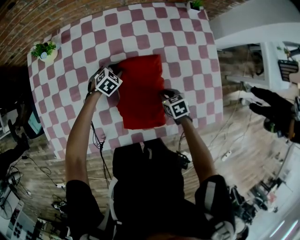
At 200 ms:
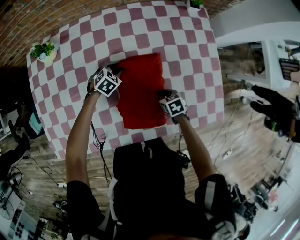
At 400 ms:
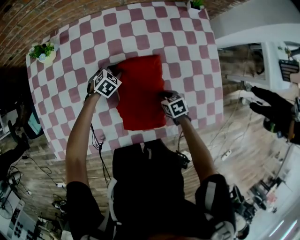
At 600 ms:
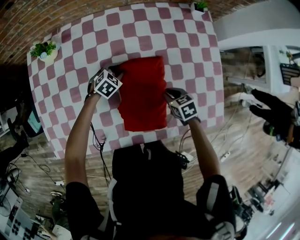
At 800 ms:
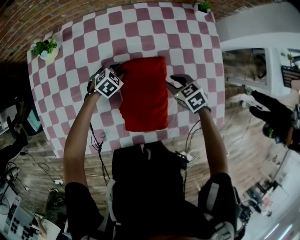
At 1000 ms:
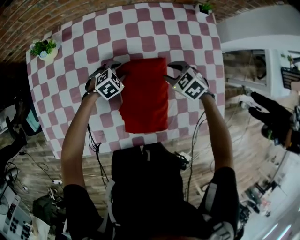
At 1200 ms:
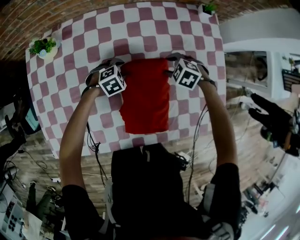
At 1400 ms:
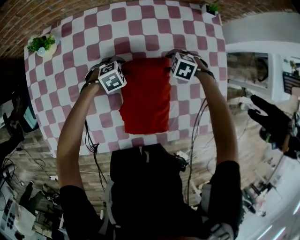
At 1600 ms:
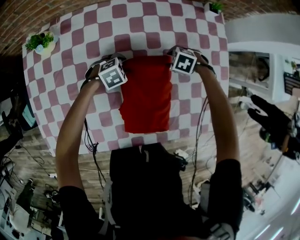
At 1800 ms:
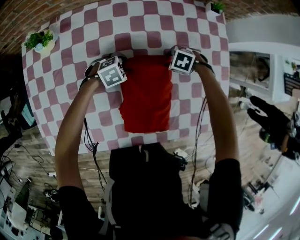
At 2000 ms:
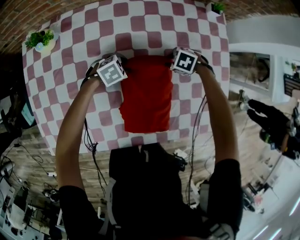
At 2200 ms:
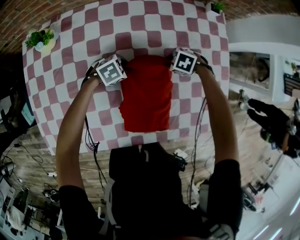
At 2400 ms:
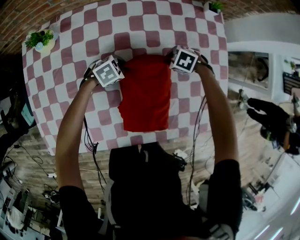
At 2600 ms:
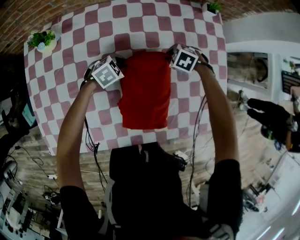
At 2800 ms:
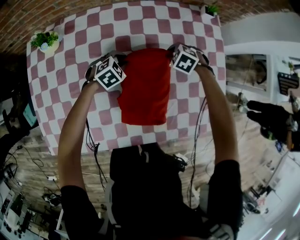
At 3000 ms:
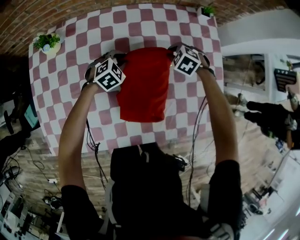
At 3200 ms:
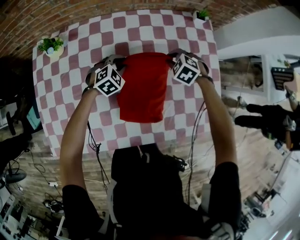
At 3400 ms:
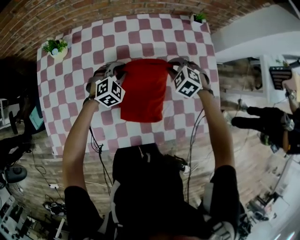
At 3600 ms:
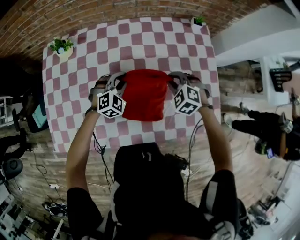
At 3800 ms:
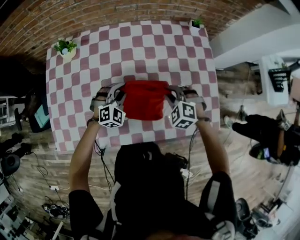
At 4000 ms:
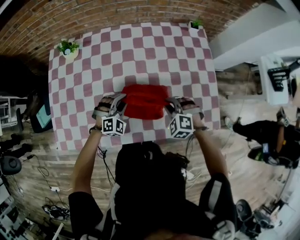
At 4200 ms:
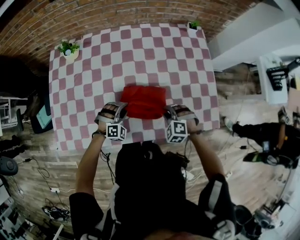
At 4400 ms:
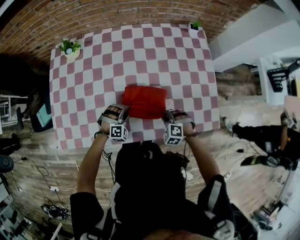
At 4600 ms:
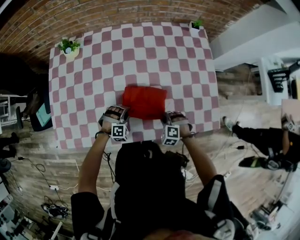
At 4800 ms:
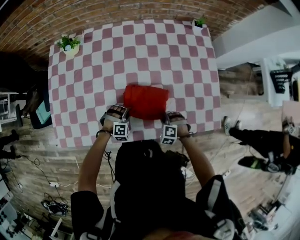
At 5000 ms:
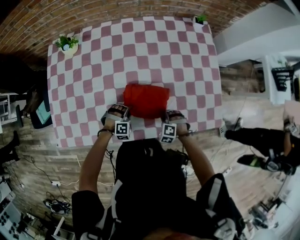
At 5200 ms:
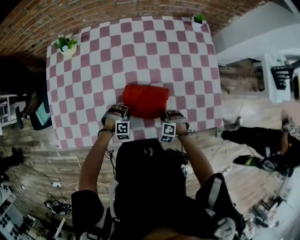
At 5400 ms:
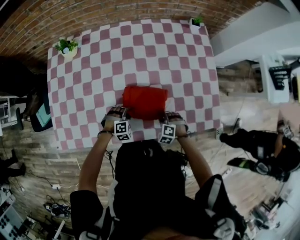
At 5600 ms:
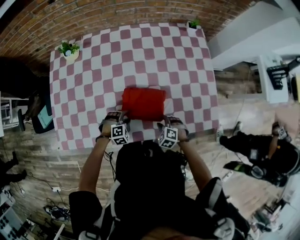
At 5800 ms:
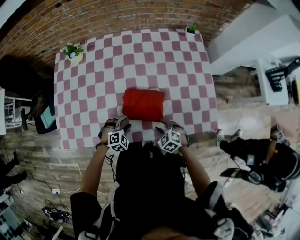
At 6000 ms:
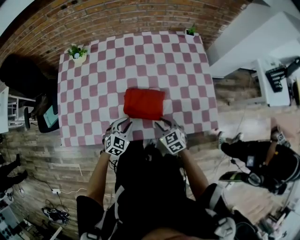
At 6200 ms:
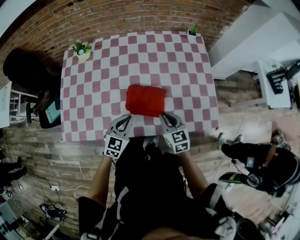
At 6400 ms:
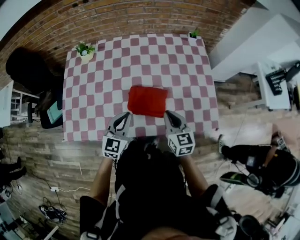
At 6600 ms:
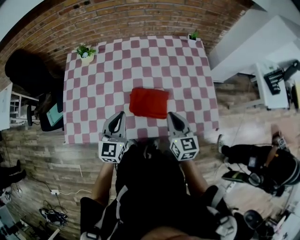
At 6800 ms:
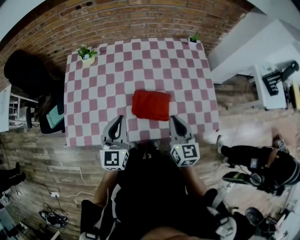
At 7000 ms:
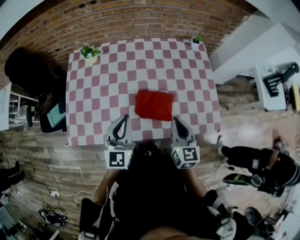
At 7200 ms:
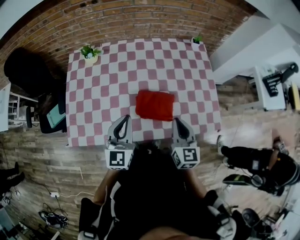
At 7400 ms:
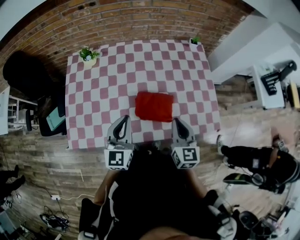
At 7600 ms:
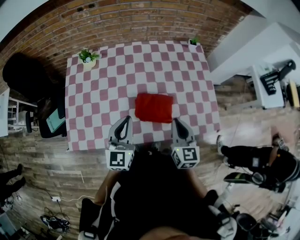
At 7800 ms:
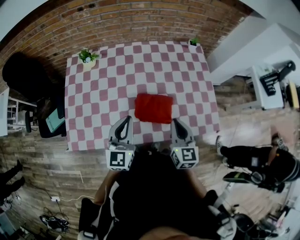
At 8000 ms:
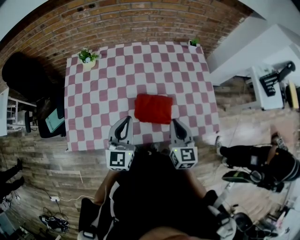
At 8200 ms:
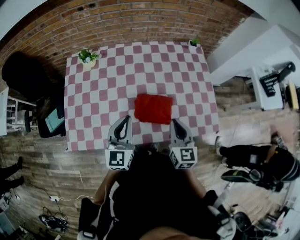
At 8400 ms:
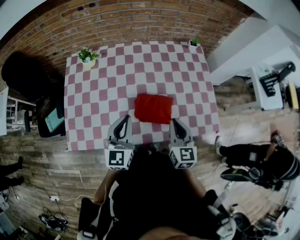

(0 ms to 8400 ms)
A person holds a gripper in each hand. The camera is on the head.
0 ms - 1400 ms: The right gripper goes upward and returns, approximately 5 cm each way, twists some 50 degrees counterclockwise, seen from behind, and opens.
1400 ms - 2800 ms: The right gripper closes its fingers. Meanwhile the left gripper closes its fingers.
2800 ms - 4200 ms: The left gripper shifts by roughly 25 cm, and turns by about 40 degrees. The right gripper changes place by about 30 cm, and rotates some 20 degrees.
4200 ms - 5600 ms: The grippers both shift downward and backward by about 10 cm. The left gripper swivels some 20 degrees, and opens. Meanwhile the right gripper opens its fingers.
5600 ms - 7000 ms: The two grippers go about 35 cm upward. The right gripper tips its fingers upward by about 50 degrees, and closes up; the left gripper tips its fingers upward by some 60 degrees, and closes.
7000 ms - 8400 ms: There are only small adjustments of the grippers.

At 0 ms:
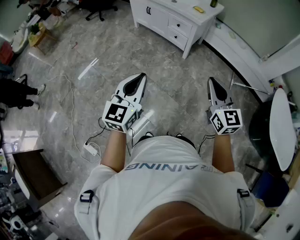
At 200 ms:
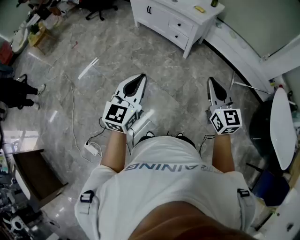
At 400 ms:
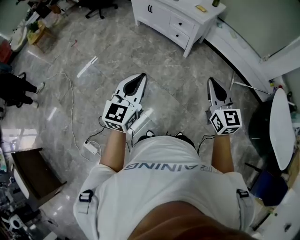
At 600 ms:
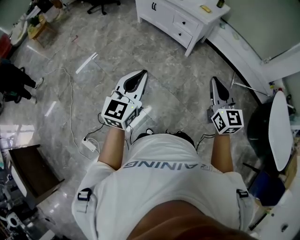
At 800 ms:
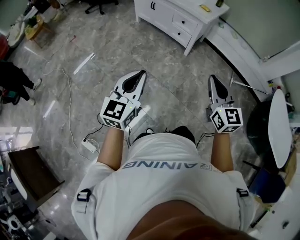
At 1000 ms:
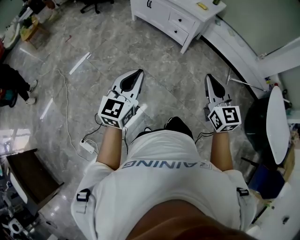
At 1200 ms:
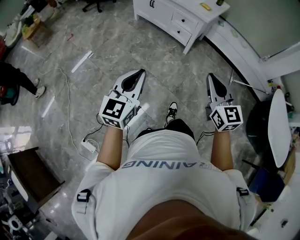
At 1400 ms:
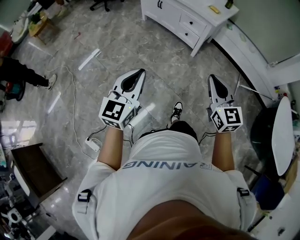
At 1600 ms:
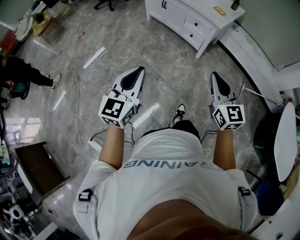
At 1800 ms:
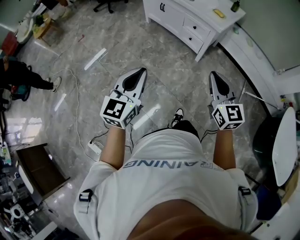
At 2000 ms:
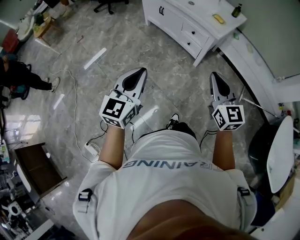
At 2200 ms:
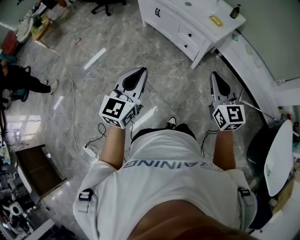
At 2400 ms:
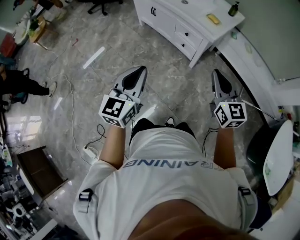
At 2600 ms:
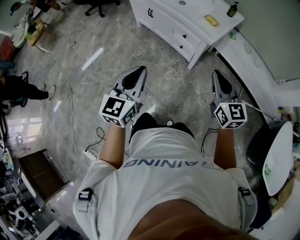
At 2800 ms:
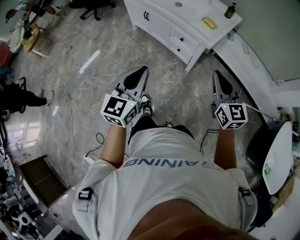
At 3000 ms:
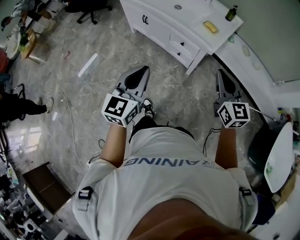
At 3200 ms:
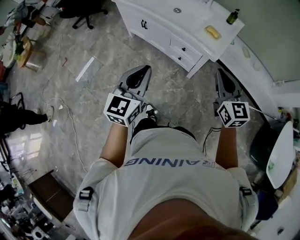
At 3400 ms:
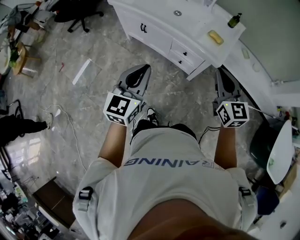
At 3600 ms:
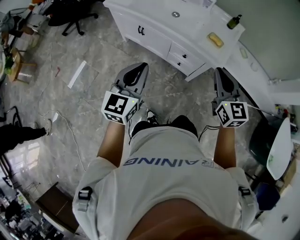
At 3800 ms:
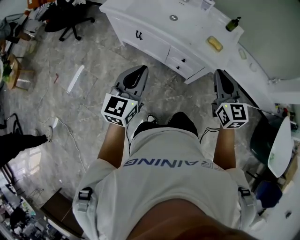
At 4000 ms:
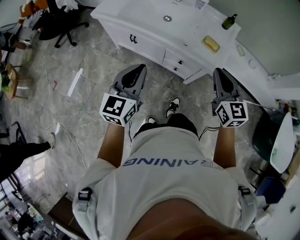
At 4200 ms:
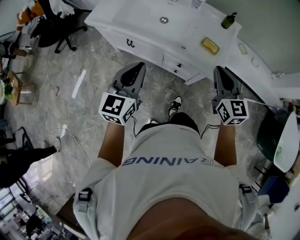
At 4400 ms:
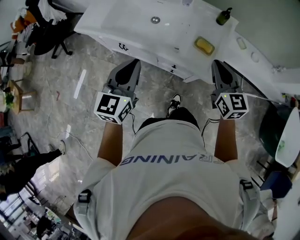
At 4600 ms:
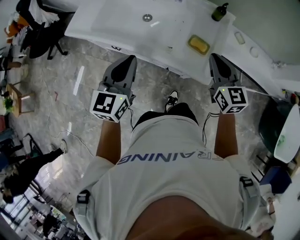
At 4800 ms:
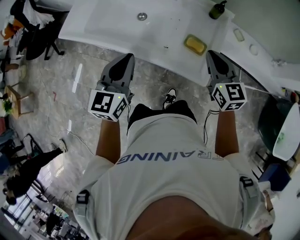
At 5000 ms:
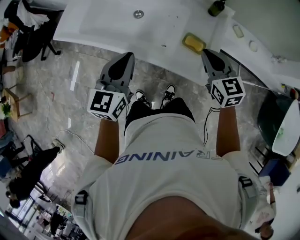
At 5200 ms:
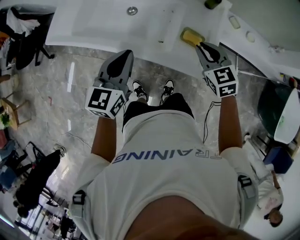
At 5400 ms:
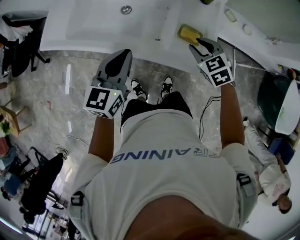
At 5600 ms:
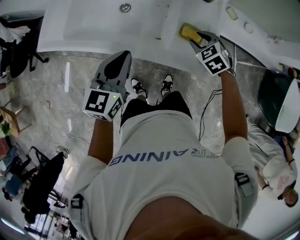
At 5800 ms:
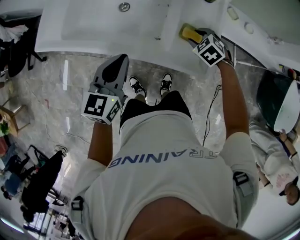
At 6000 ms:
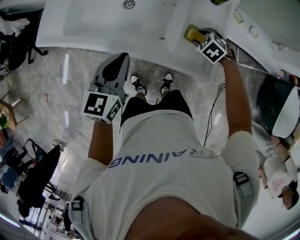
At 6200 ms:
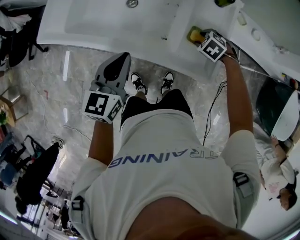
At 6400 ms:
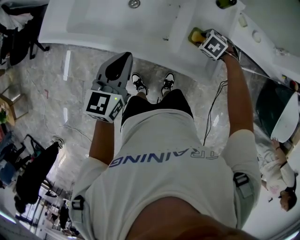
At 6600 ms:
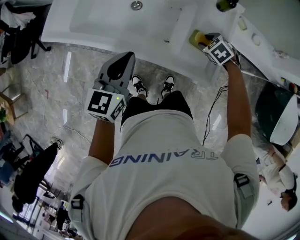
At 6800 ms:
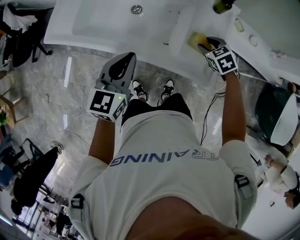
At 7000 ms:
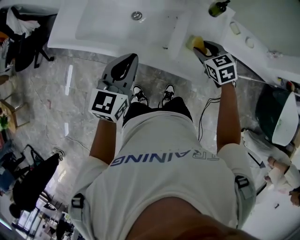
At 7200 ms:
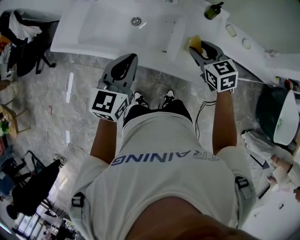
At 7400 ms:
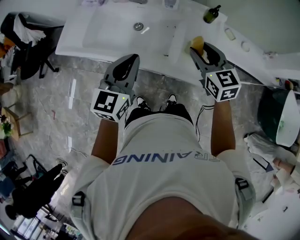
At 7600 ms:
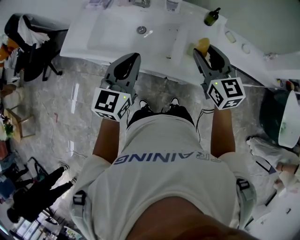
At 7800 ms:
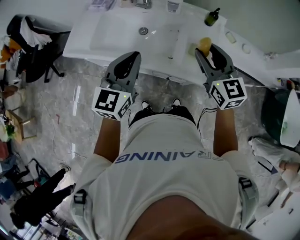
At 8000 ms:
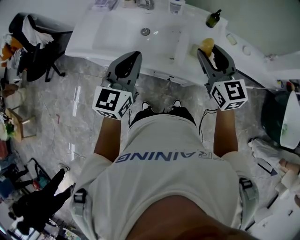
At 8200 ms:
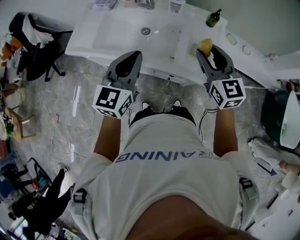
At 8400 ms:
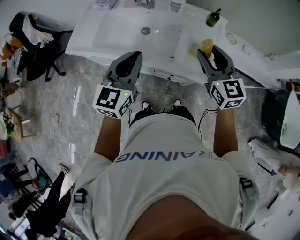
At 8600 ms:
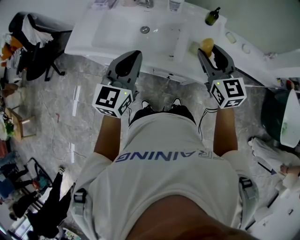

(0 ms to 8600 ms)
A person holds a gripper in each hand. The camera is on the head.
0 ms - 1400 ms: The right gripper heads to the left and forward, covering roughly 10 cm. Meanwhile the left gripper travels to the left by some 10 cm.
1400 ms - 2800 ms: The grippers both shift forward and to the right by roughly 35 cm.
2800 ms - 4400 ms: The grippers both shift forward by some 40 cm.
4400 ms - 5800 ms: The left gripper heads forward and downward, covering some 15 cm; the right gripper moves downward and forward, roughly 30 cm, tips its fingers downward by roughly 50 degrees, and opens its fingers.
5800 ms - 7200 ms: The right gripper heads upward, covering some 15 cm, and points its fingers about 30 degrees further upward. Meanwhile the left gripper moves upward, some 5 cm.
7200 ms - 8600 ms: The right gripper shifts some 15 cm upward and backward, and swivels about 20 degrees. The left gripper goes about 5 cm upward.

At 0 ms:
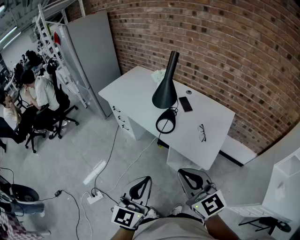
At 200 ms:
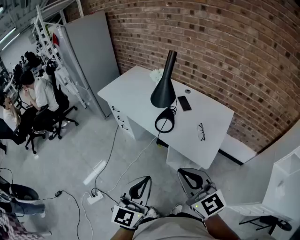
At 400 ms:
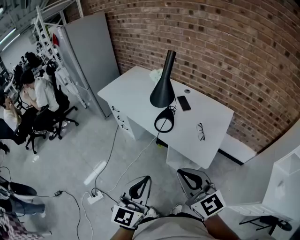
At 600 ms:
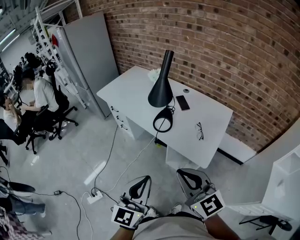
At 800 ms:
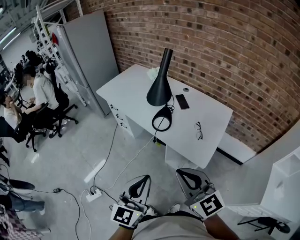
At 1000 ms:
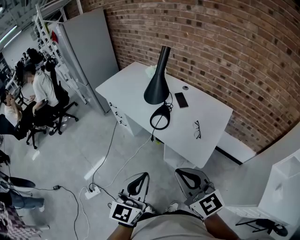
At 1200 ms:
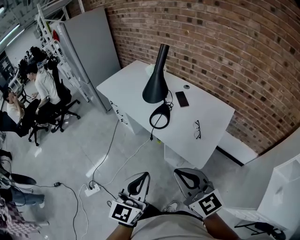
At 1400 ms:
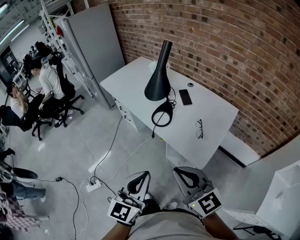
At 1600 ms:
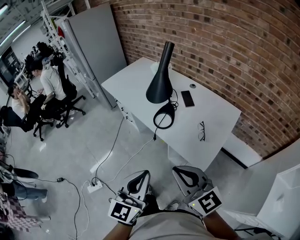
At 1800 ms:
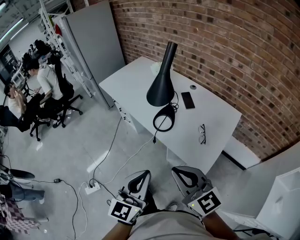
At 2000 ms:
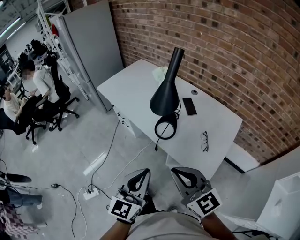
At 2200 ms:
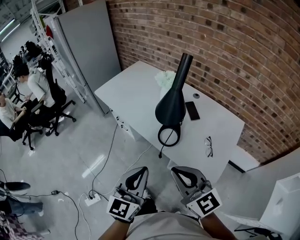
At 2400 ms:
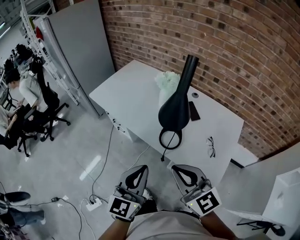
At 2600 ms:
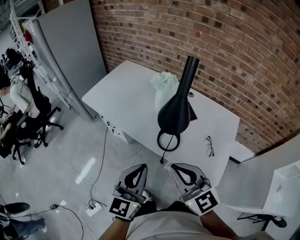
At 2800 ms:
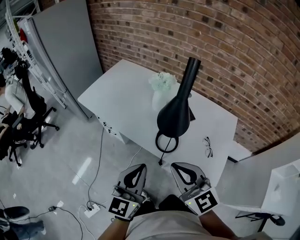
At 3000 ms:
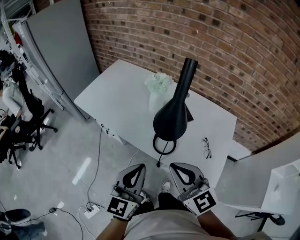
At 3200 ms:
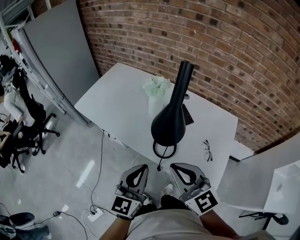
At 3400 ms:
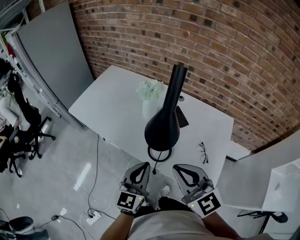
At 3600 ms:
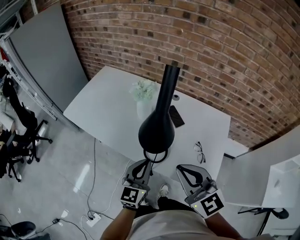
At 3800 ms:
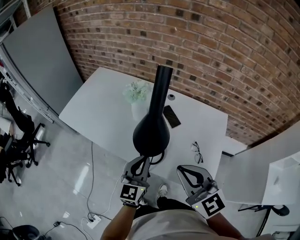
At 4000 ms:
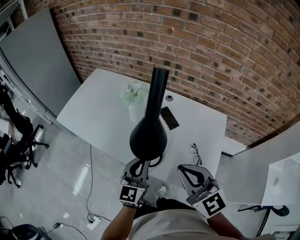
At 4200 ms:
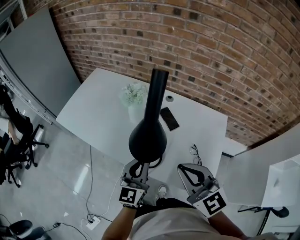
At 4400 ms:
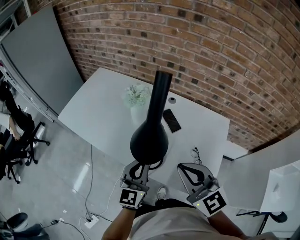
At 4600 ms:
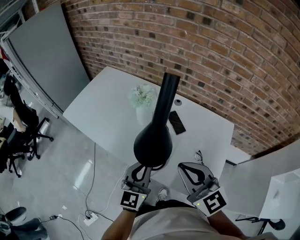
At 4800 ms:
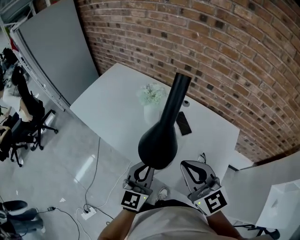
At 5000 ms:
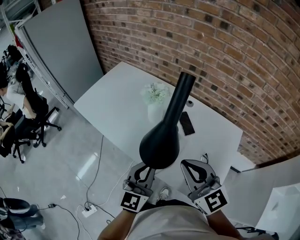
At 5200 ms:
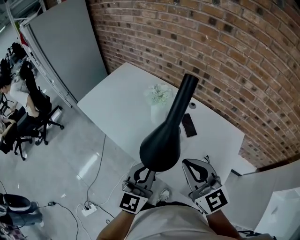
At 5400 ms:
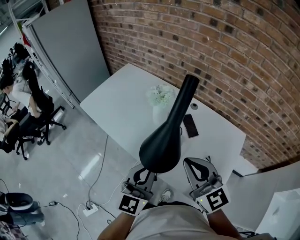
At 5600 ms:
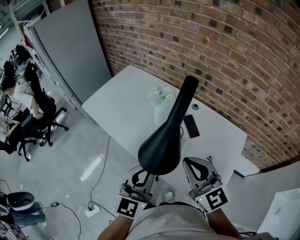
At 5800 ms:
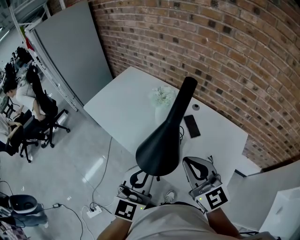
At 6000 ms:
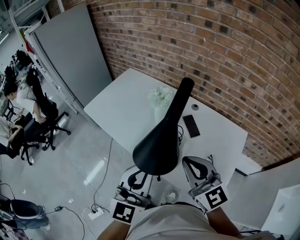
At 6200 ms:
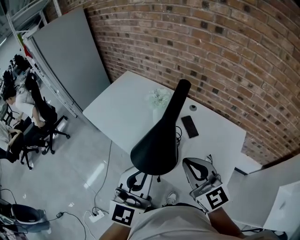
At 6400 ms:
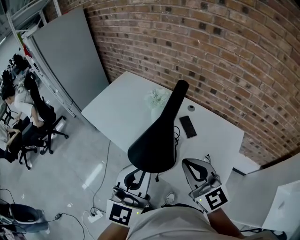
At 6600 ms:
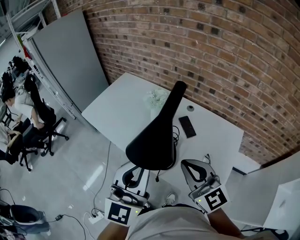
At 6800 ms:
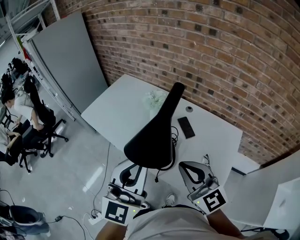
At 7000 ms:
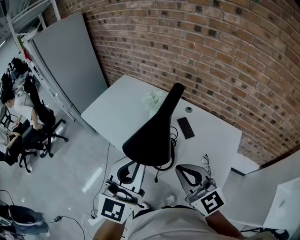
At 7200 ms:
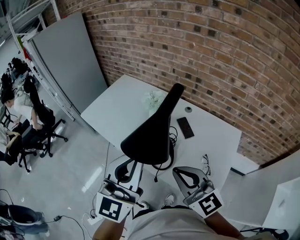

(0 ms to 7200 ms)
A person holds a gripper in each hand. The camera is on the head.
0 ms - 1400 ms: Both grippers travel together to the right, some 5 cm.
1400 ms - 2800 ms: The grippers both shift forward and to the left by approximately 30 cm.
2800 ms - 4400 ms: The left gripper is displaced forward, to the right and downward by some 20 cm. Meanwhile the right gripper heads to the right and forward, covering roughly 15 cm.
4400 ms - 5800 ms: The left gripper moves upward and backward, roughly 10 cm.
5800 ms - 7200 ms: The right gripper is displaced backward by approximately 5 cm. Meanwhile the left gripper travels upward by roughly 10 cm.
